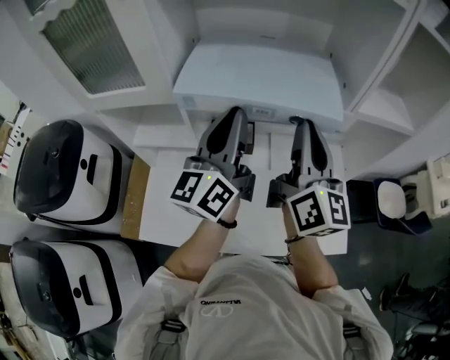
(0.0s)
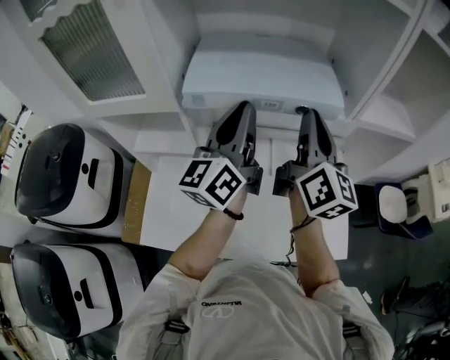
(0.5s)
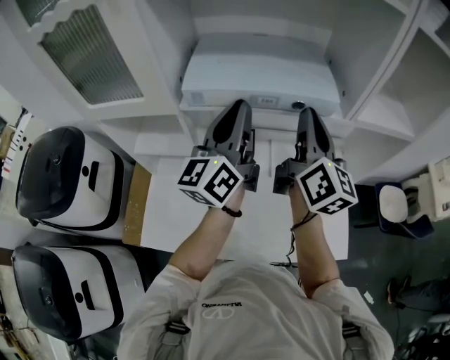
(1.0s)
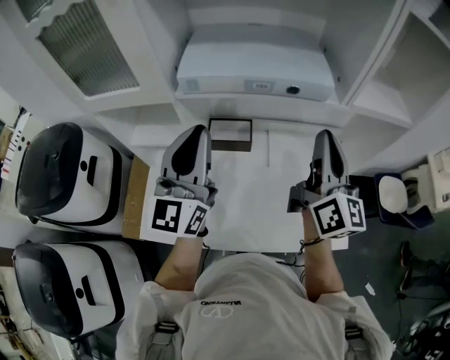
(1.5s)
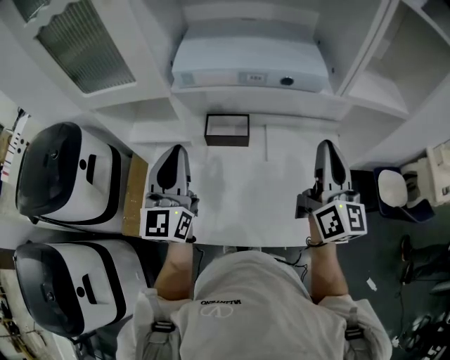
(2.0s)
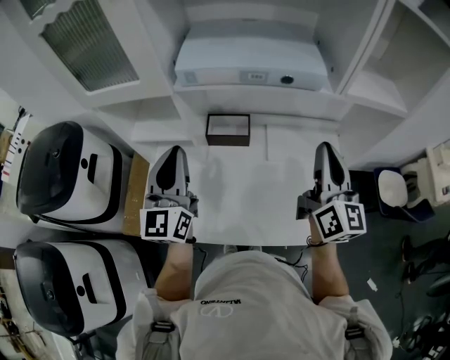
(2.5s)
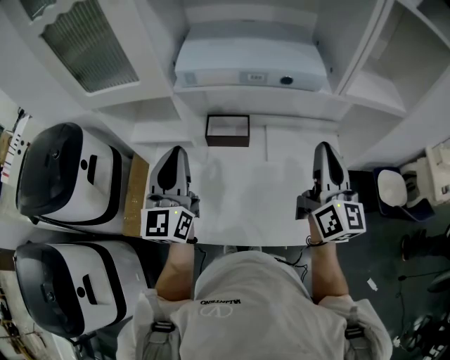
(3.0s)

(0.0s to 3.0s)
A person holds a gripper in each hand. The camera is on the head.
0.0s - 1.5s: The right gripper shifts about 5 cm to the right. Meanwhile the left gripper ends up approximately 5 cm from where it was, and rotates some 30 degrees.
1.5s - 3.0s: The right gripper moves approximately 5 cm. Meanwhile the left gripper moves downward and to the left, some 10 cm.

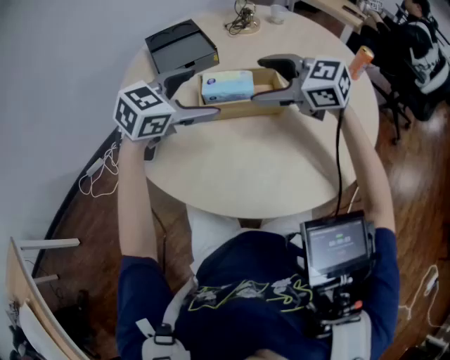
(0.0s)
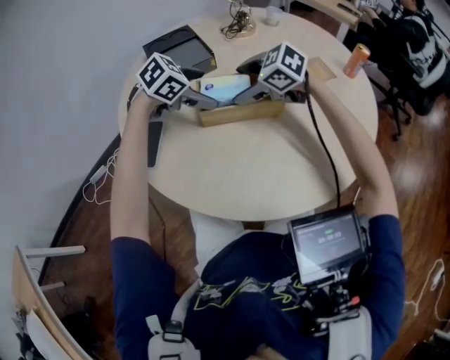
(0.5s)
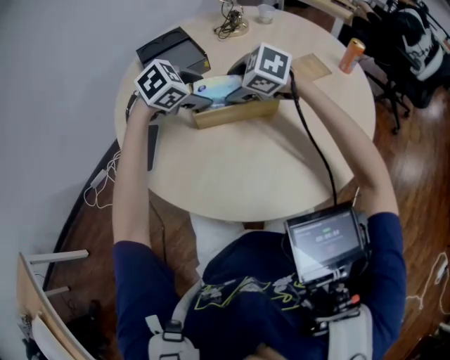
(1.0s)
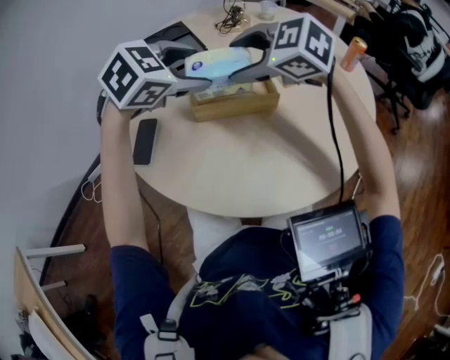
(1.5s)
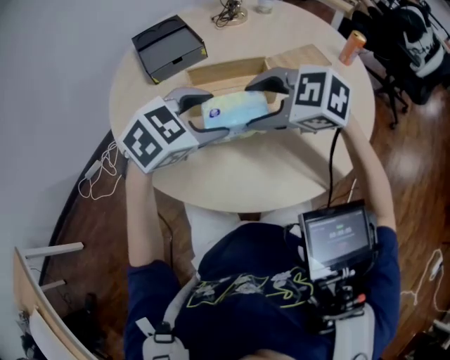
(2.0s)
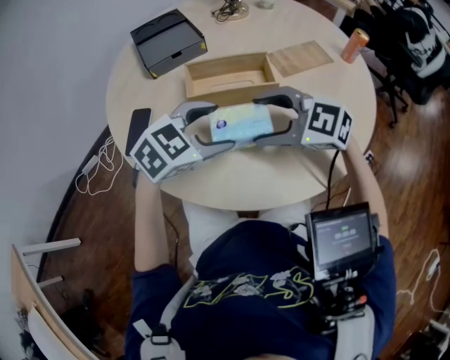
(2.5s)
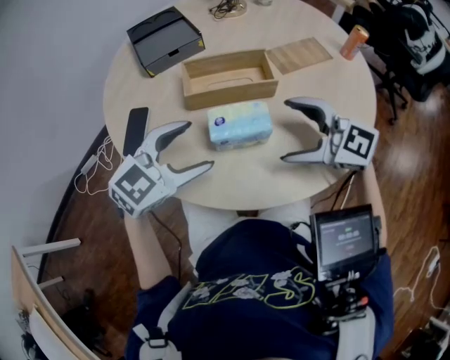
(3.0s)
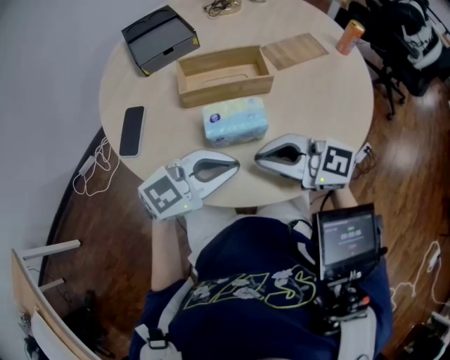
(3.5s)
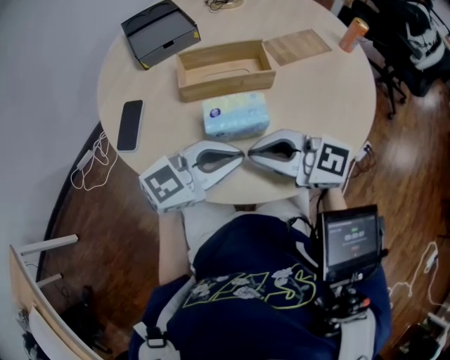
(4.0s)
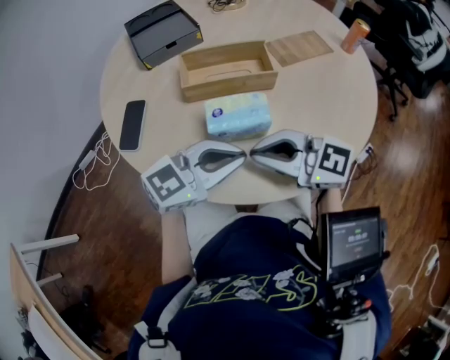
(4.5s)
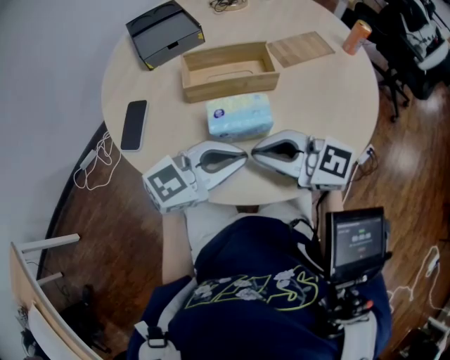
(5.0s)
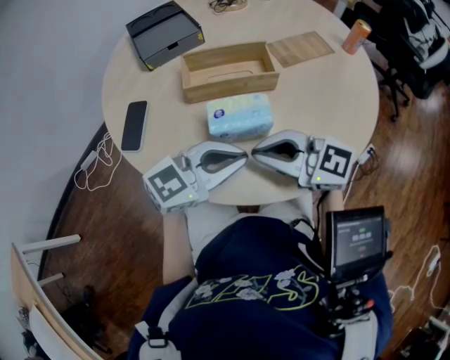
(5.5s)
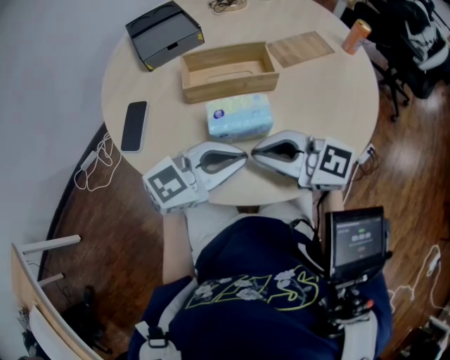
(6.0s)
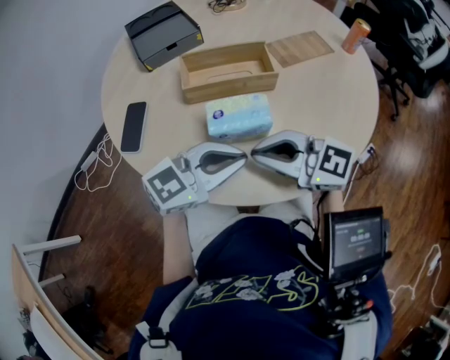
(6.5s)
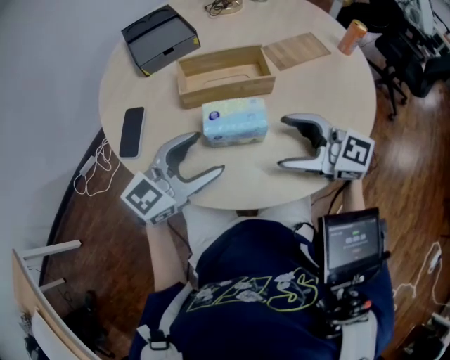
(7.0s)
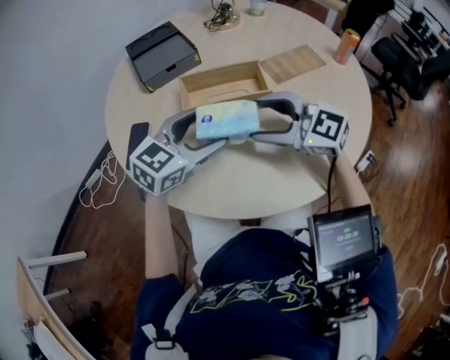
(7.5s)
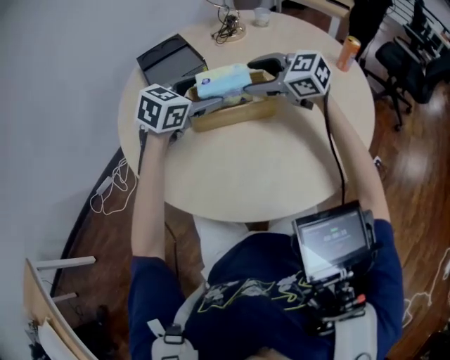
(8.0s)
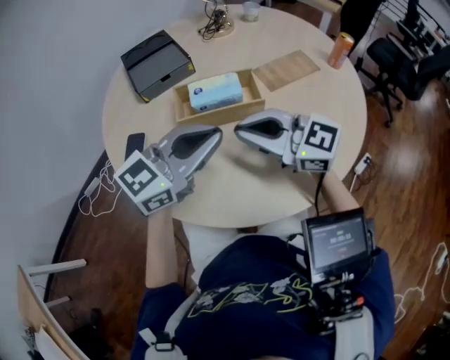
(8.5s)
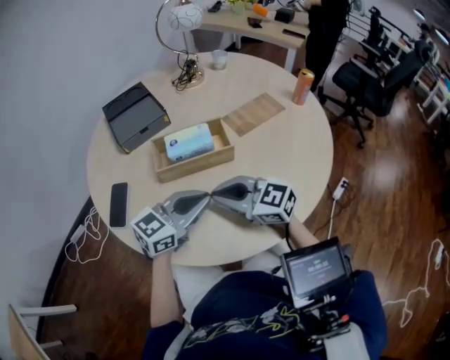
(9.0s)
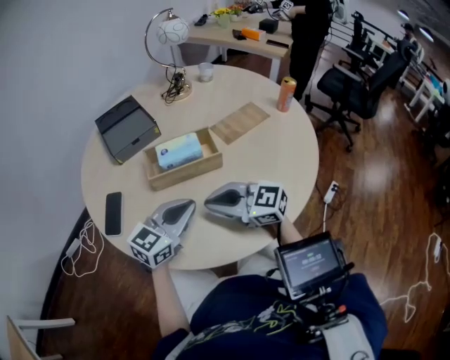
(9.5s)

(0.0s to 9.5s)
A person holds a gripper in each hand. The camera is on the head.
0.0s - 2.0s: The right gripper moves up and down over roughly 10 cm, changing direction 2 times, and turns by roughly 20 degrees. Meanwhile the left gripper goes up and down, roughly 10 cm each way, reversing 2 times.
2.0s - 4.0s: The right gripper moves some 10 cm, points its fingers roughly 30 degrees further upward, and closes. The left gripper changes place by about 10 cm, tilts its fingers some 30 degrees upward, and closes.
4.0s - 5.5s: Neither gripper changes place.
5.5s - 7.5s: The right gripper changes place by roughly 10 cm, and opens. The left gripper moves some 15 cm, swivels approximately 20 degrees, and opens its fingers.
7.5s - 9.5s: The left gripper travels upward and back again, some 5 cm each way, and closes its fingers, while the right gripper closes.

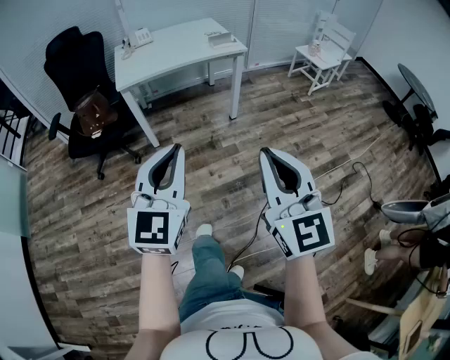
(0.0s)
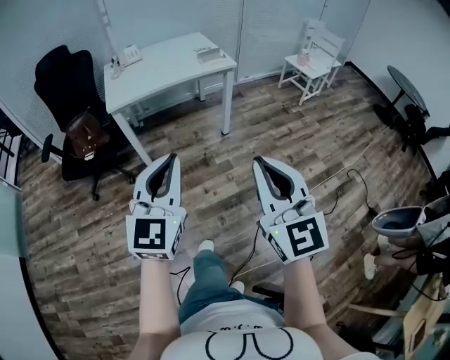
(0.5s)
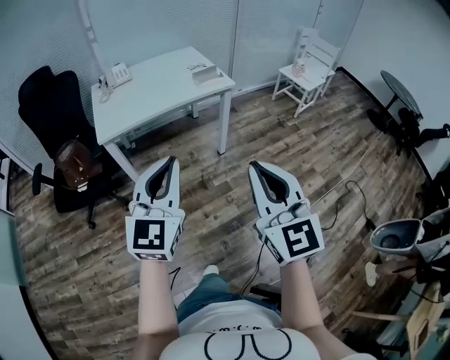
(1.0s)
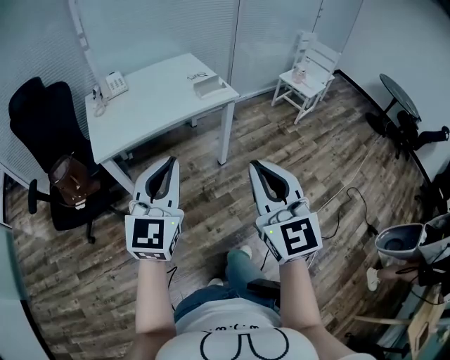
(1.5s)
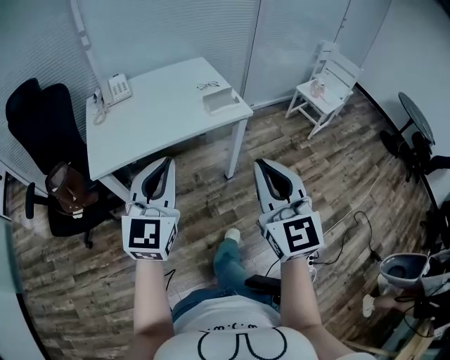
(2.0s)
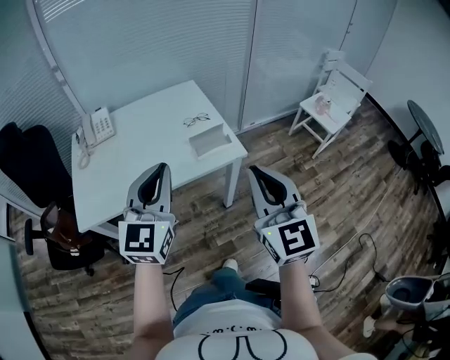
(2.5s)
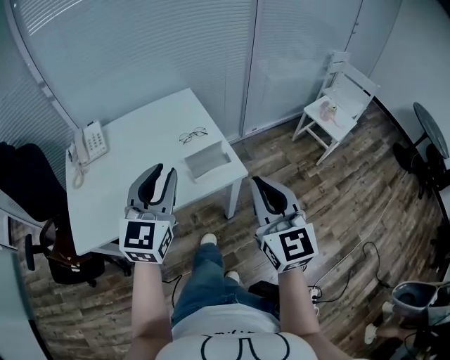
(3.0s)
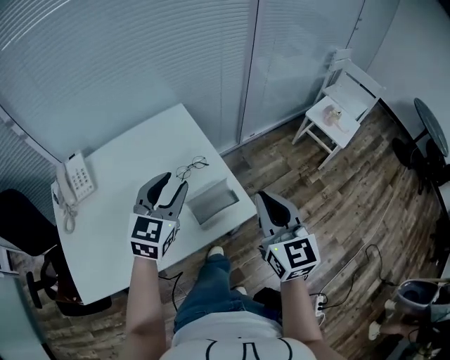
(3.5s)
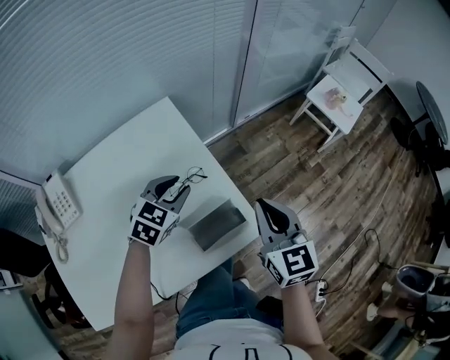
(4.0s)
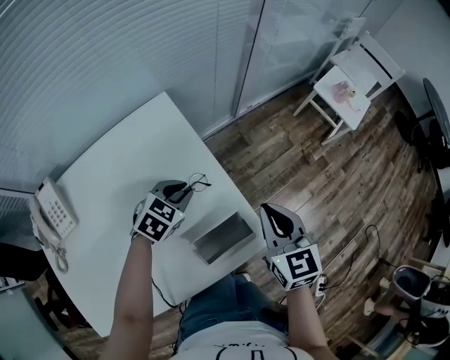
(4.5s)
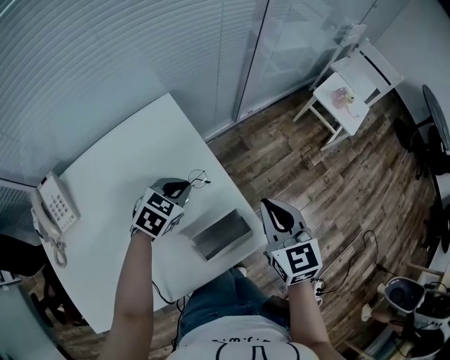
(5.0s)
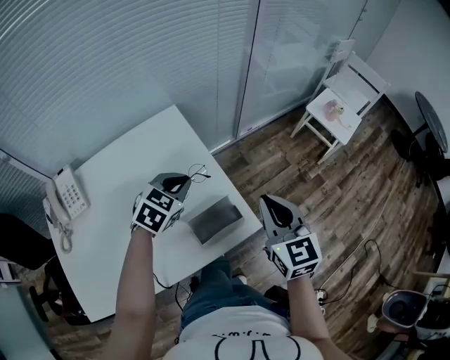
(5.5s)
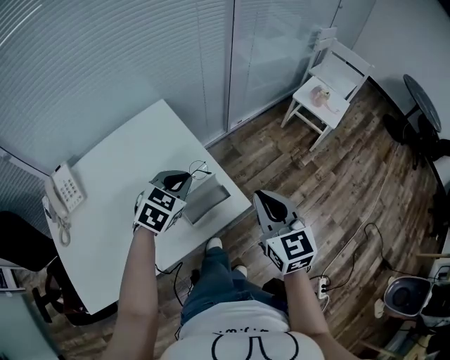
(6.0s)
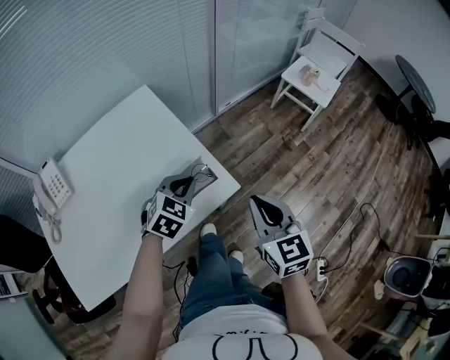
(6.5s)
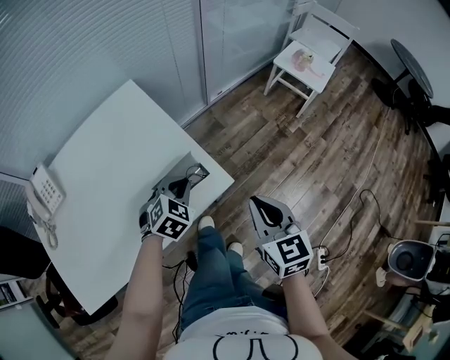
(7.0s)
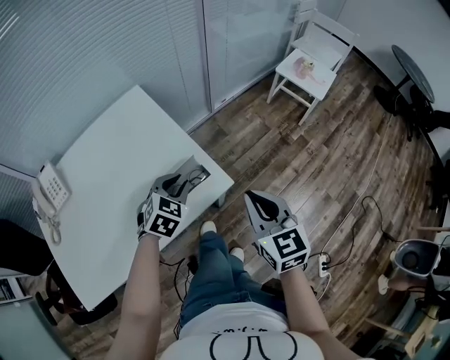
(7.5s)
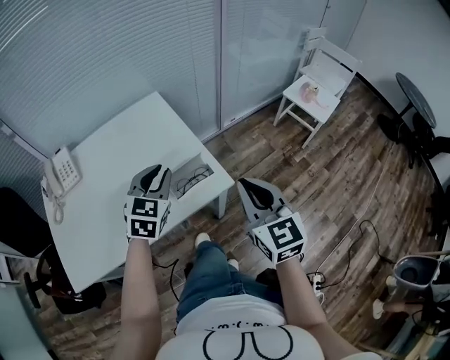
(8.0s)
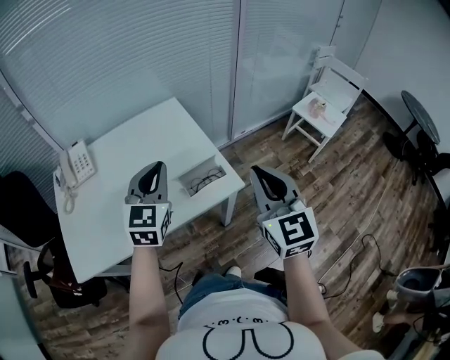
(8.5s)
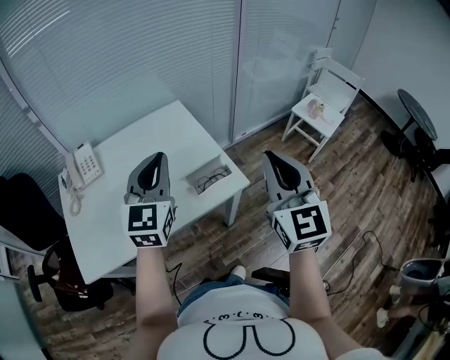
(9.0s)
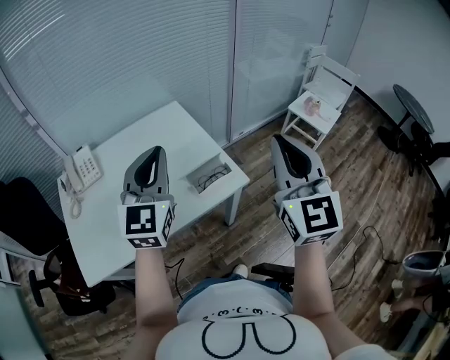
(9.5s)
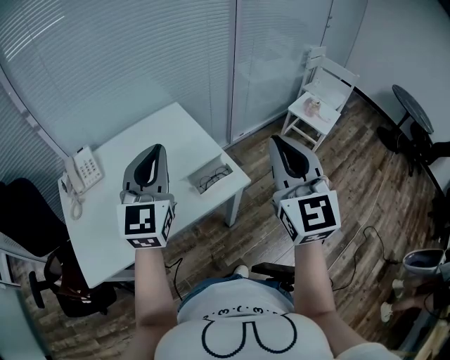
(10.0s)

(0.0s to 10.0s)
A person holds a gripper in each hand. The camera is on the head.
0.0s - 2.0s: The two grippers travel together, forward, approximately 50 cm.
2.0s - 4.0s: The two grippers travel together, forward, roughly 60 cm. The left gripper tilts its fingers about 40 degrees downward, and opens up; the right gripper changes its angle by about 30 degrees.
4.0s - 6.0s: Both grippers move backward and to the right, roughly 10 cm. The left gripper closes up.
6.0s - 8.0s: Both grippers travel together backward, approximately 10 cm. The right gripper moves approximately 10 cm downward and comes back. The left gripper travels downward and back again, about 10 cm each way, and swivels approximately 20 degrees.
8.0s - 10.0s: The right gripper travels upward by roughly 15 cm, and changes its angle by about 20 degrees. The left gripper goes some 20 cm upward and backward, and tilts its fingers some 30 degrees upward.

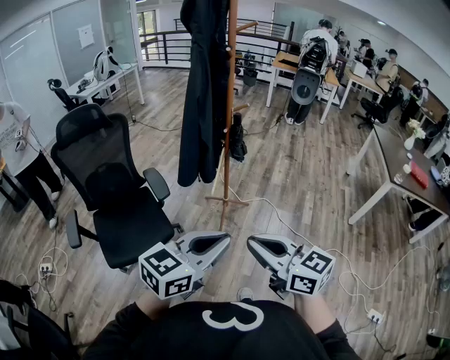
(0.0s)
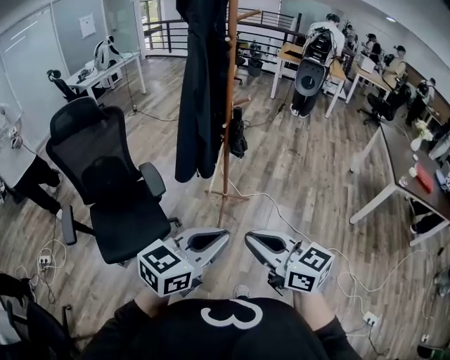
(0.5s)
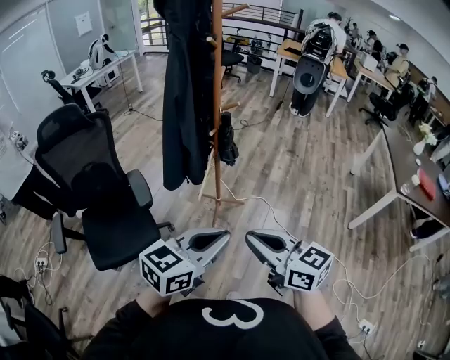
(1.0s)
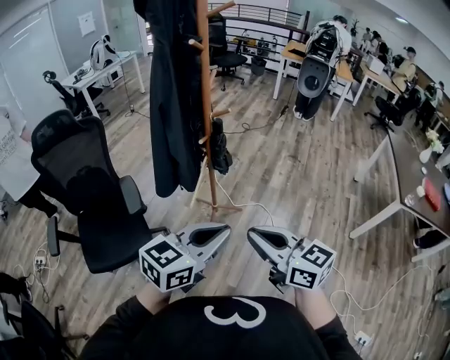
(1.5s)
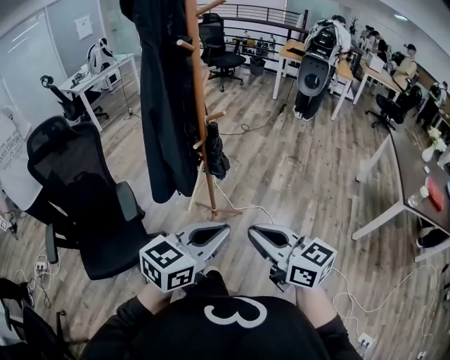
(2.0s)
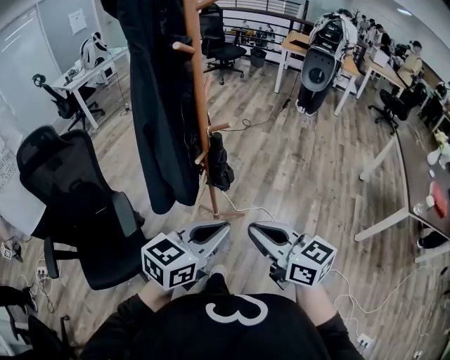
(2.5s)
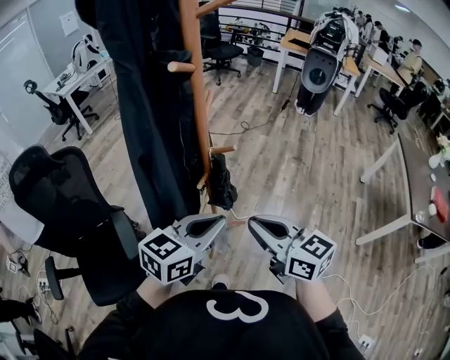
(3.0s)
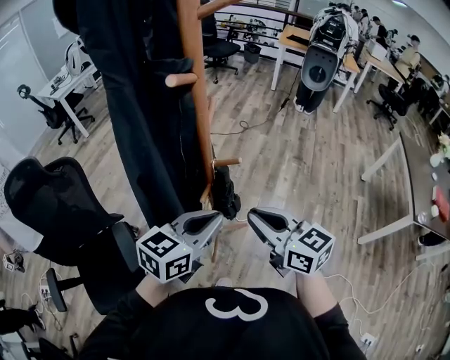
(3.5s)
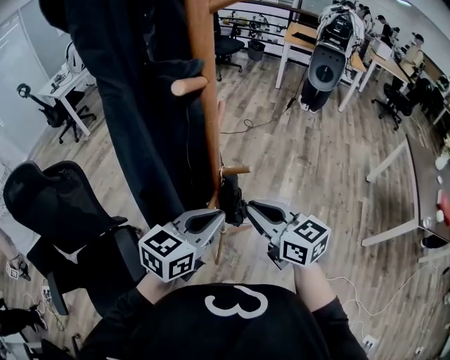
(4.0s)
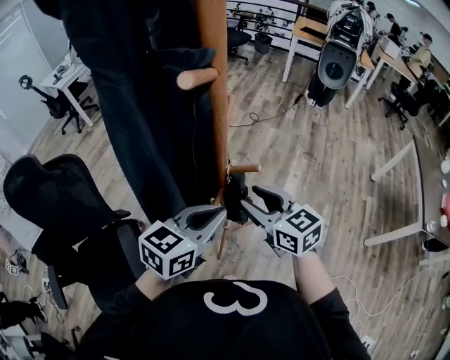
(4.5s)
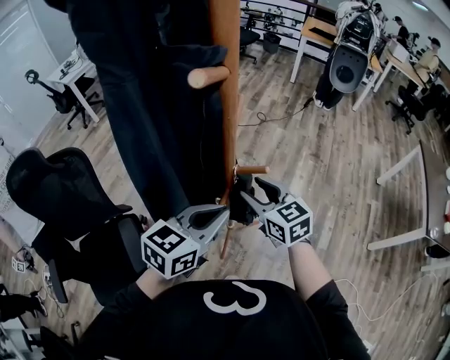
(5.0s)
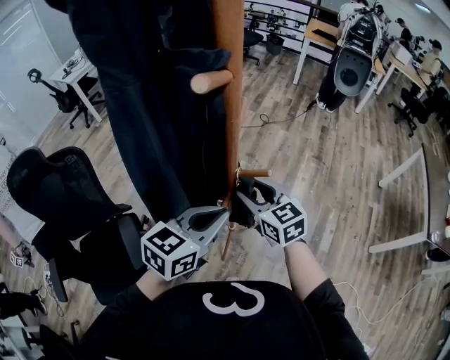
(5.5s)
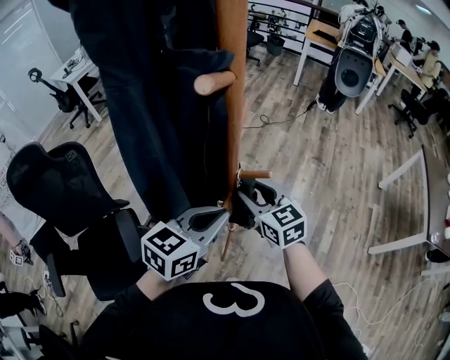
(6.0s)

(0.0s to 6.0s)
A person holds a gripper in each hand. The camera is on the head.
0.0s - 2.0s: The grippers both shift forward and to the right by approximately 25 cm.
2.0s - 4.0s: The two grippers go about 30 cm forward.
4.0s - 6.0s: The right gripper shifts roughly 10 cm forward and downward, and opens its fingers.
